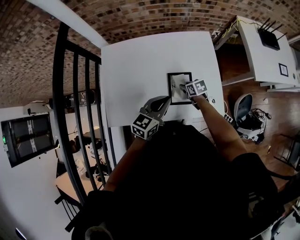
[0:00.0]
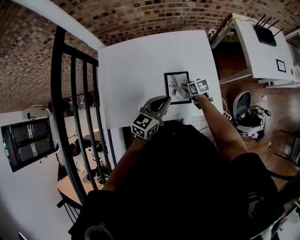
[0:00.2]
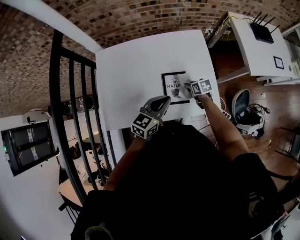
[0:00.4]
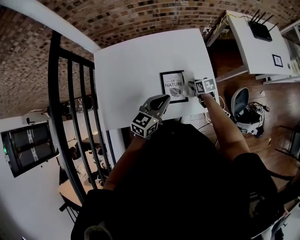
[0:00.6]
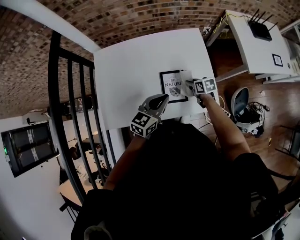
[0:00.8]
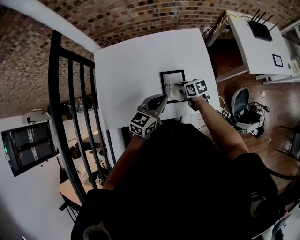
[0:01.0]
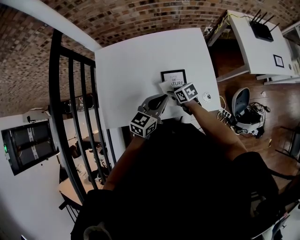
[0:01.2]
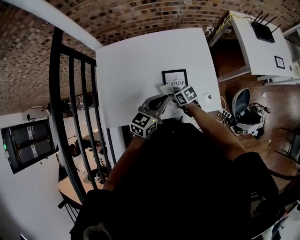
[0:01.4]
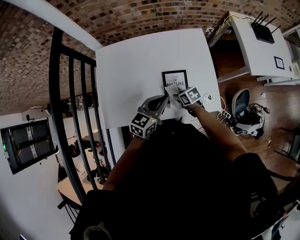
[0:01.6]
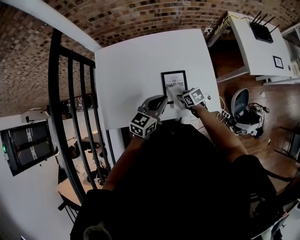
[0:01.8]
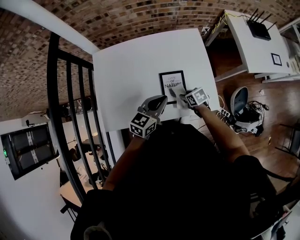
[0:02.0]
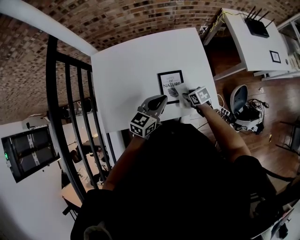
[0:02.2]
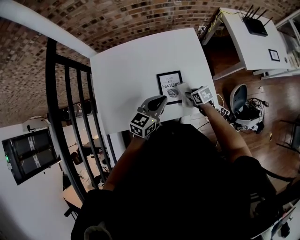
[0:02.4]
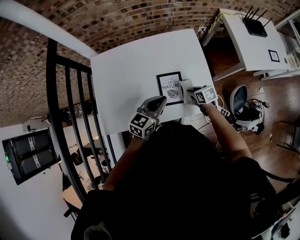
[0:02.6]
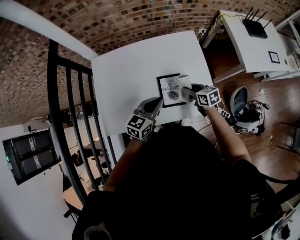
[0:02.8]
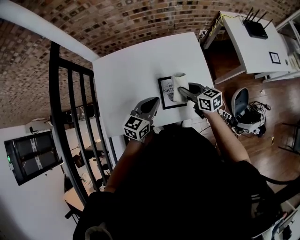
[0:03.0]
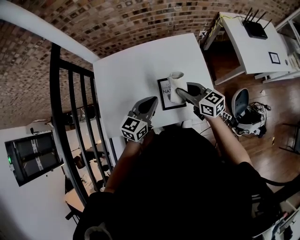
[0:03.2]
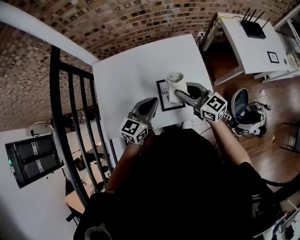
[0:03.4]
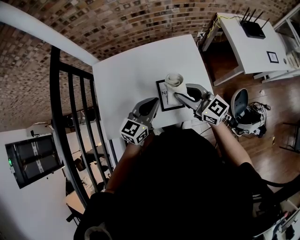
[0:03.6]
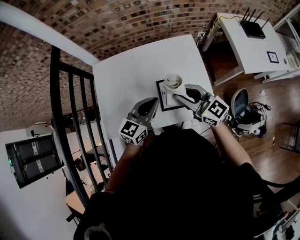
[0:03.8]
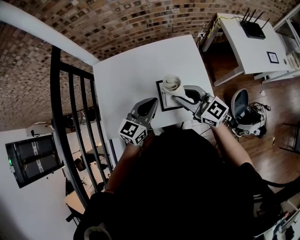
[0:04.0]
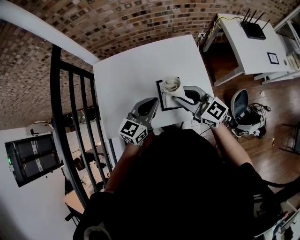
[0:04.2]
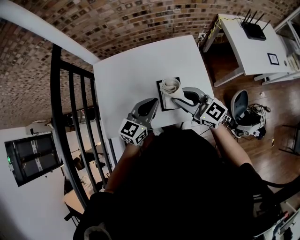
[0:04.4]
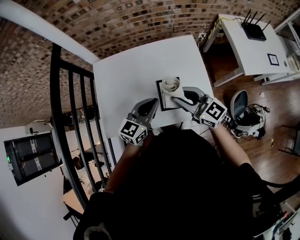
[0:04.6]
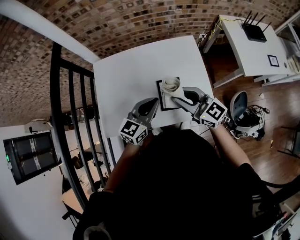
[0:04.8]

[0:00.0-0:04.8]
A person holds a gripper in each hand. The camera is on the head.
0.0 to 1.6 s: The right gripper moves backward, some 5 cm, and travels to the right and back again, approximately 10 cm each way.
1.6 to 3.2 s: The right gripper heads upward, covering roughly 25 cm, and points its fingers approximately 40 degrees further upward.
3.2 to 4.8 s: The right gripper moves upward, approximately 10 cm, and changes its angle by roughly 20 degrees.

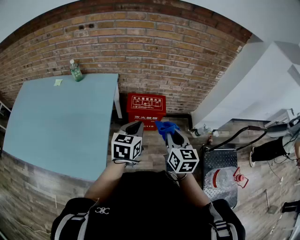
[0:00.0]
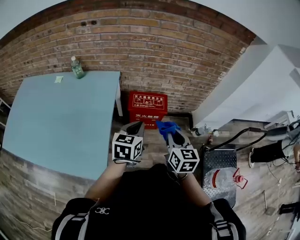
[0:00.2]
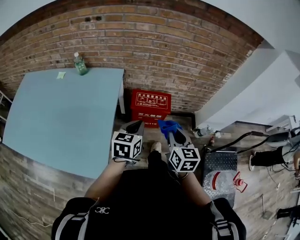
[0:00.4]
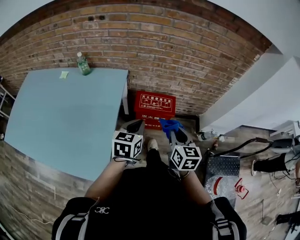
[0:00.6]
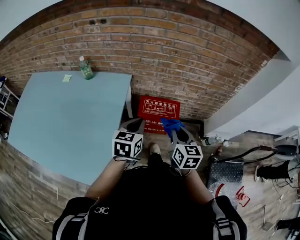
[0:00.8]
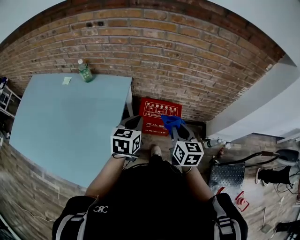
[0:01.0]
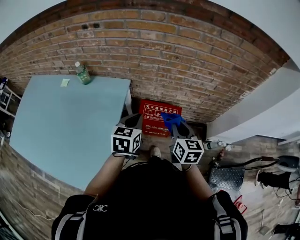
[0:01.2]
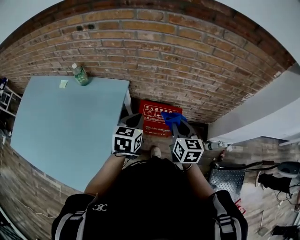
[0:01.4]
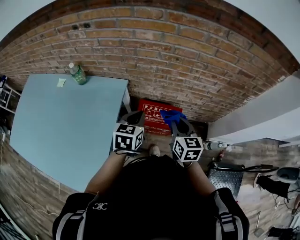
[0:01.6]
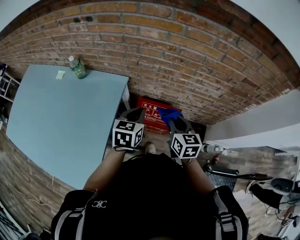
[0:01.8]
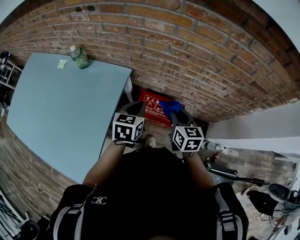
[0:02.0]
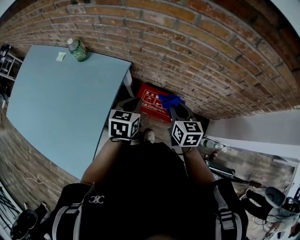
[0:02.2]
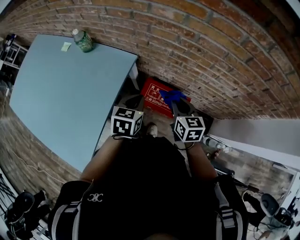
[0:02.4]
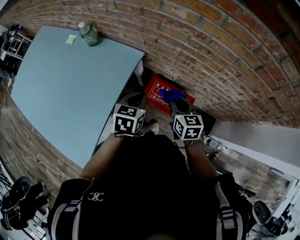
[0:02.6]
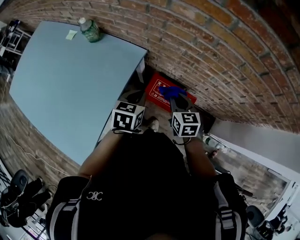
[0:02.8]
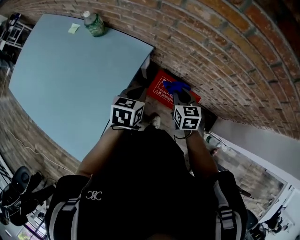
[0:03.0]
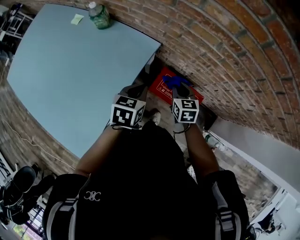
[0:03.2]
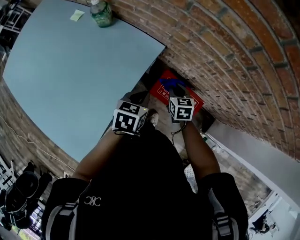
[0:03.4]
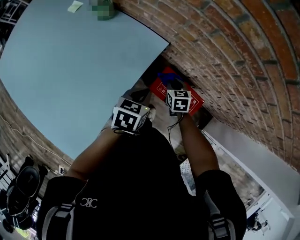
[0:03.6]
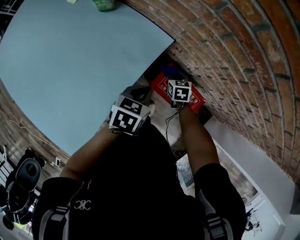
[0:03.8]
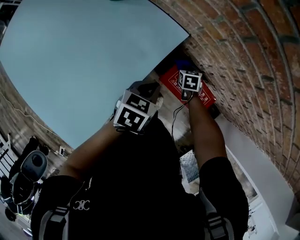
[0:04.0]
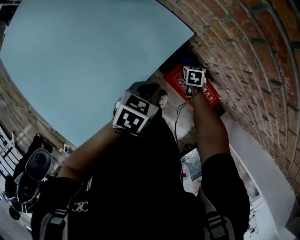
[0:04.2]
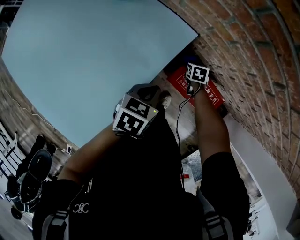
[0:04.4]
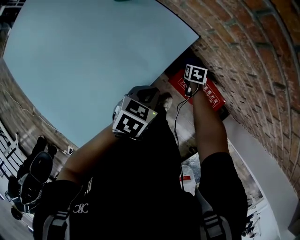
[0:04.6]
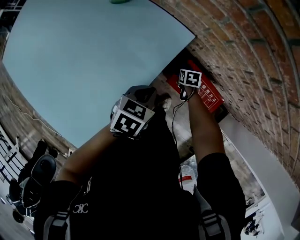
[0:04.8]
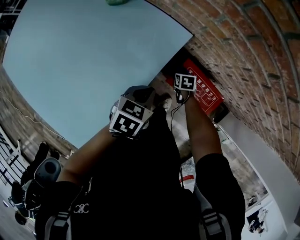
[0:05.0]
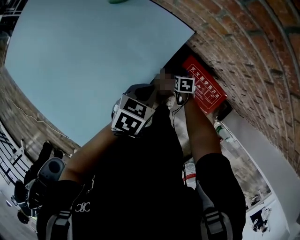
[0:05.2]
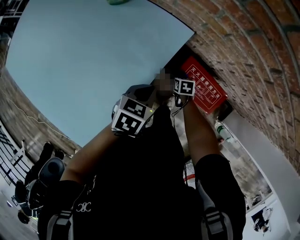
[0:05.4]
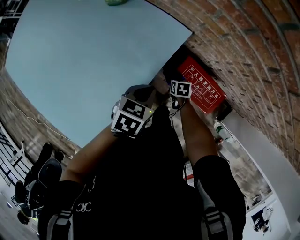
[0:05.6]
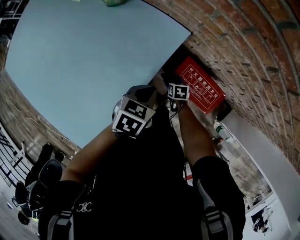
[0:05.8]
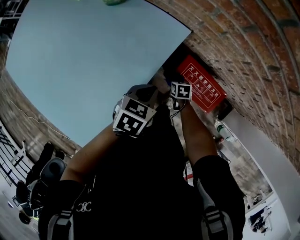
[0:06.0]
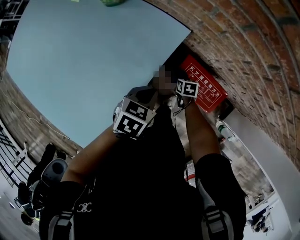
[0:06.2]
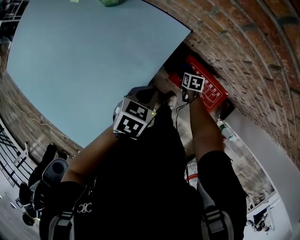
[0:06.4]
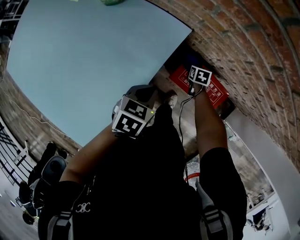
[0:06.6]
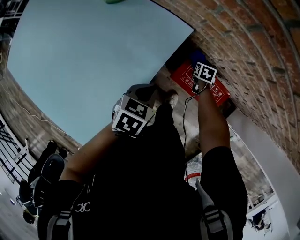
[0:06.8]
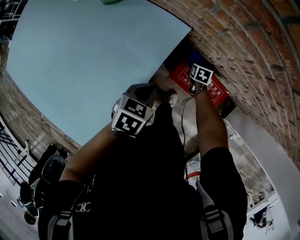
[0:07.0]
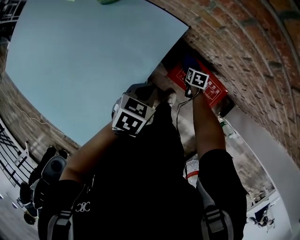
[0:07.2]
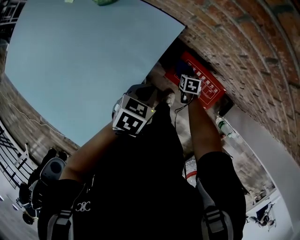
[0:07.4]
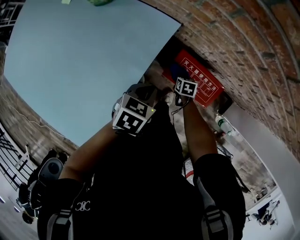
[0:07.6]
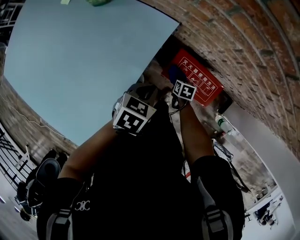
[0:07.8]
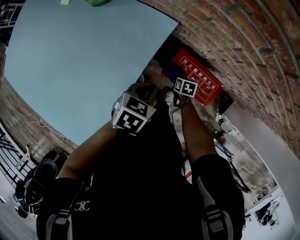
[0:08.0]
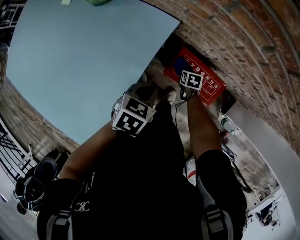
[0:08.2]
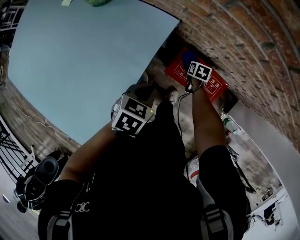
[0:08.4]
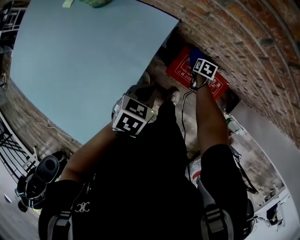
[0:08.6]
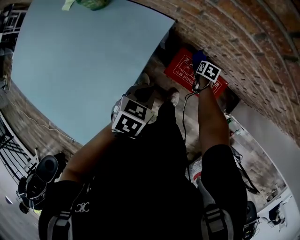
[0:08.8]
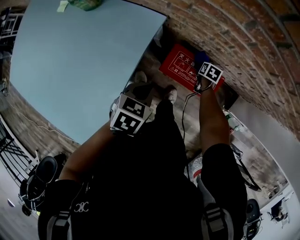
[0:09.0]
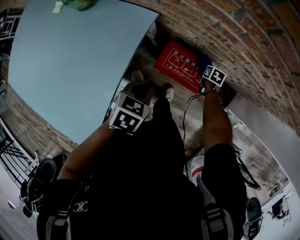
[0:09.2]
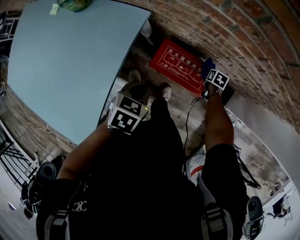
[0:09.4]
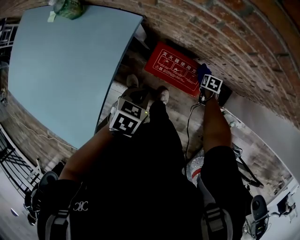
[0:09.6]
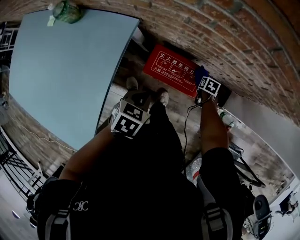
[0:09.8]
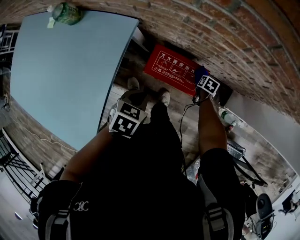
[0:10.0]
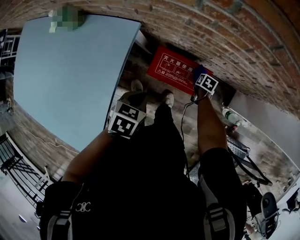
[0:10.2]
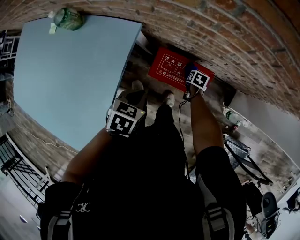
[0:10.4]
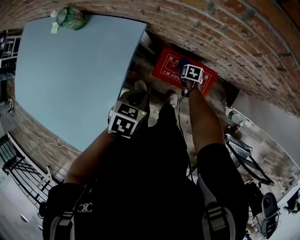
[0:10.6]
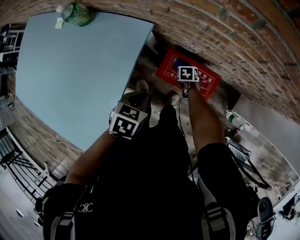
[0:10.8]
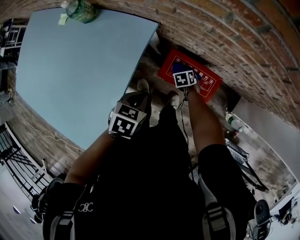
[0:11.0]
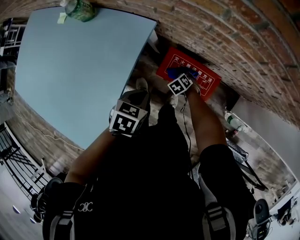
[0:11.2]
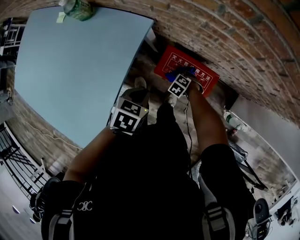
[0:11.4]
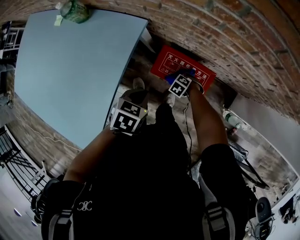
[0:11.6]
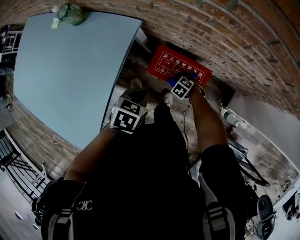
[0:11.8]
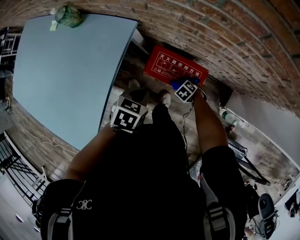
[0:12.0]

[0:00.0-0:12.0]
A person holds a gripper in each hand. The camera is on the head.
0.0 to 1.6 s: The grippers both shift forward by approximately 30 cm.
1.6 to 3.0 s: The left gripper goes approximately 15 cm forward, downward and to the left, and turns by approximately 20 degrees. The right gripper shifts some 20 cm forward, downward and to the left, and changes its angle by approximately 20 degrees.
3.0 to 4.4 s: The left gripper is displaced downward and to the left by some 15 cm. The right gripper travels downward and forward by approximately 30 cm, and points its fingers roughly 30 degrees further downward.
4.4 to 6.0 s: The right gripper moves backward, roughly 15 cm.
6.0 to 7.6 s: The right gripper heads to the right, covering some 5 cm, and reaches about 15 cm forward, then returns.
7.6 to 9.0 s: The right gripper shifts approximately 15 cm to the right and forward.
9.0 to 10.4 s: The right gripper travels to the right and backward by roughly 10 cm.
10.4 to 12.0 s: The right gripper twists roughly 70 degrees counterclockwise, seen from behind.

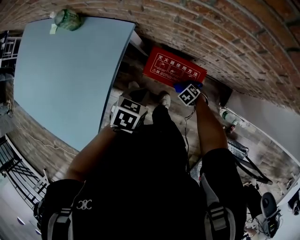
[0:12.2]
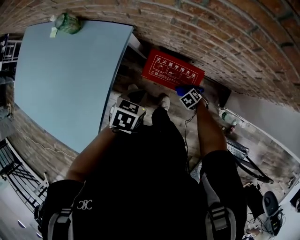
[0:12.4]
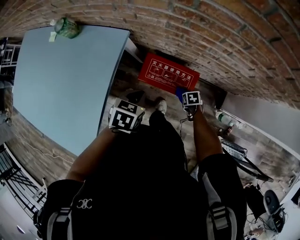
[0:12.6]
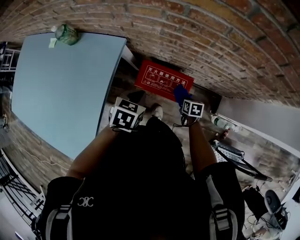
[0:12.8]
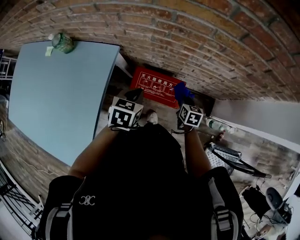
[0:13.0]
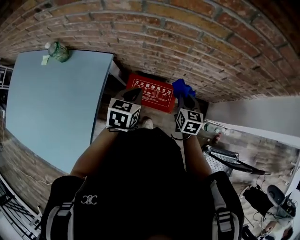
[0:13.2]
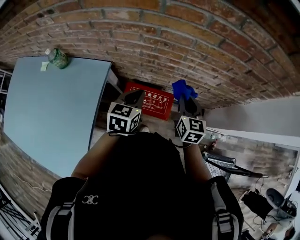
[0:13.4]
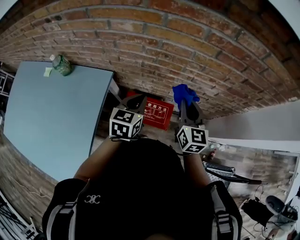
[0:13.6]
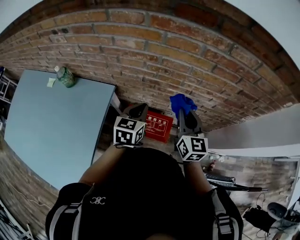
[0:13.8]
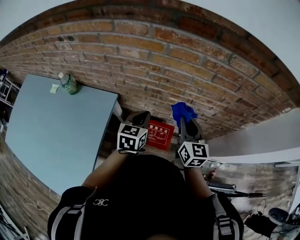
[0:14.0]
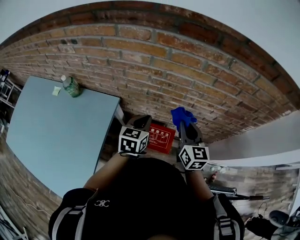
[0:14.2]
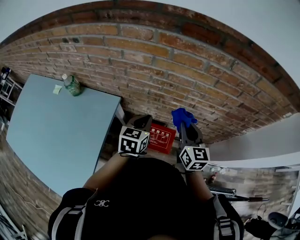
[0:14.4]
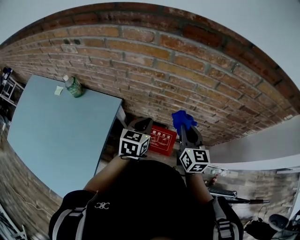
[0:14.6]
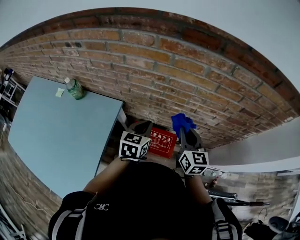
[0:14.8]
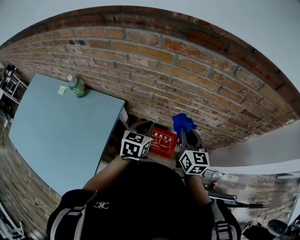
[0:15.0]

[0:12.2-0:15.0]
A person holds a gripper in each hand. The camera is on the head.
12.2 to 13.6 s: The left gripper heads upward, covering roughly 15 cm, and tips its fingers upward by roughly 30 degrees. The right gripper moves upward, some 50 cm, and tips its fingers upward by some 70 degrees.
13.6 to 15.0 s: The grippers stay close to where they were, moving slightly.

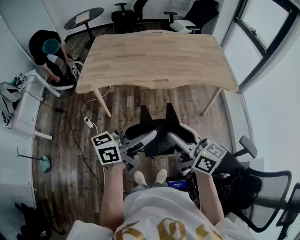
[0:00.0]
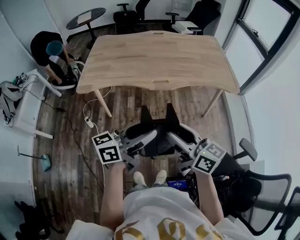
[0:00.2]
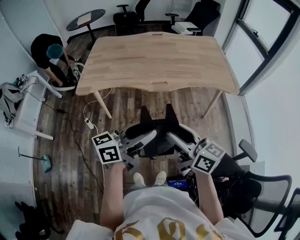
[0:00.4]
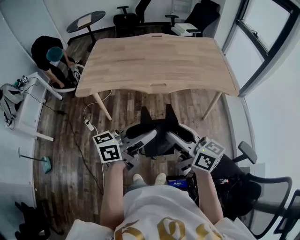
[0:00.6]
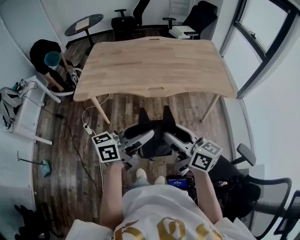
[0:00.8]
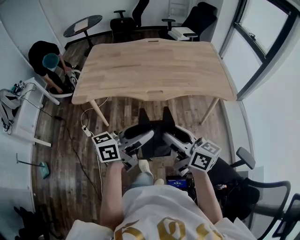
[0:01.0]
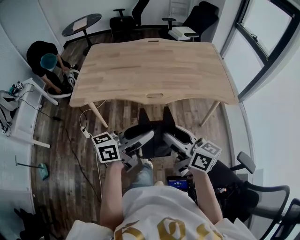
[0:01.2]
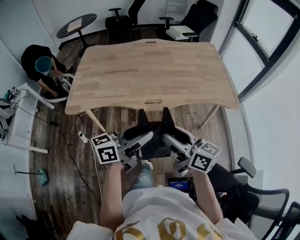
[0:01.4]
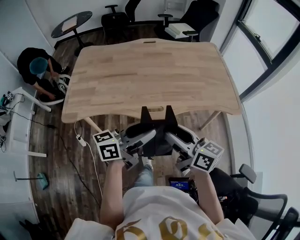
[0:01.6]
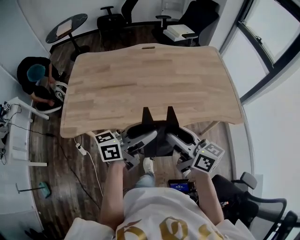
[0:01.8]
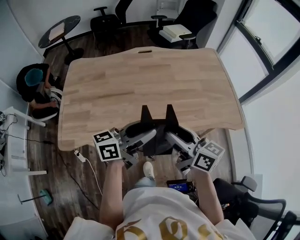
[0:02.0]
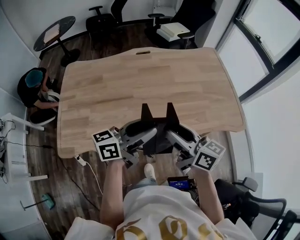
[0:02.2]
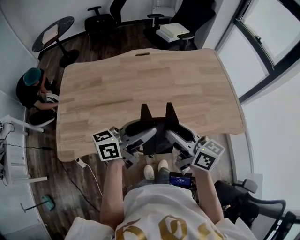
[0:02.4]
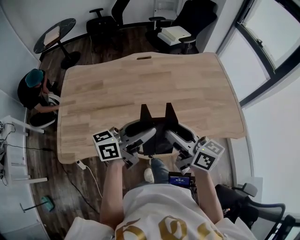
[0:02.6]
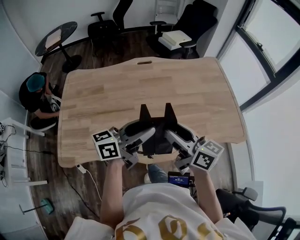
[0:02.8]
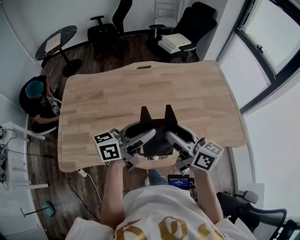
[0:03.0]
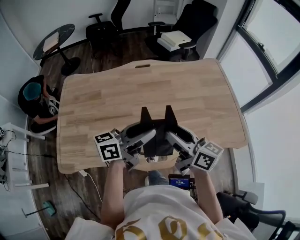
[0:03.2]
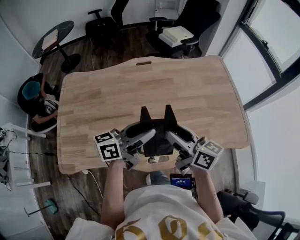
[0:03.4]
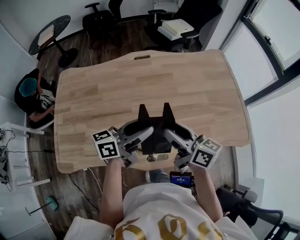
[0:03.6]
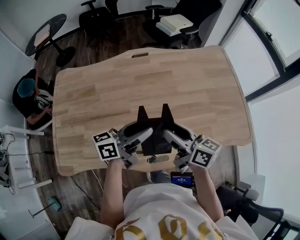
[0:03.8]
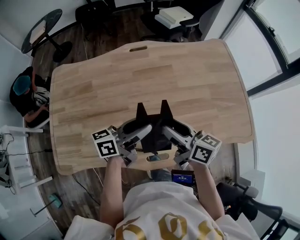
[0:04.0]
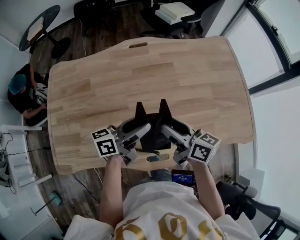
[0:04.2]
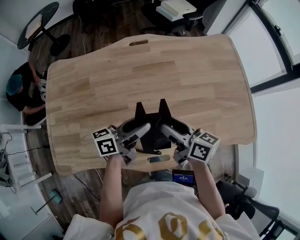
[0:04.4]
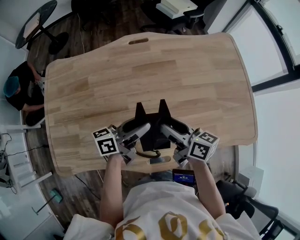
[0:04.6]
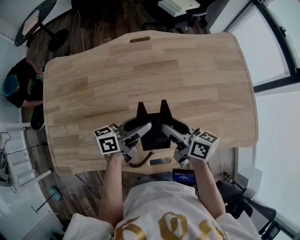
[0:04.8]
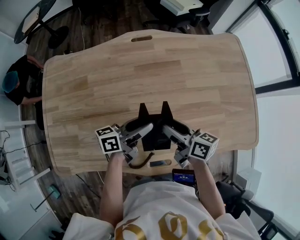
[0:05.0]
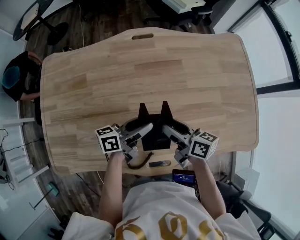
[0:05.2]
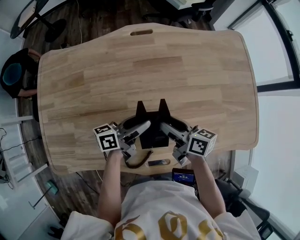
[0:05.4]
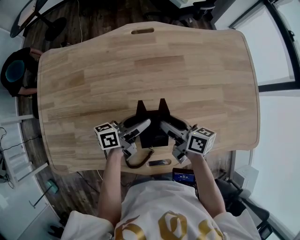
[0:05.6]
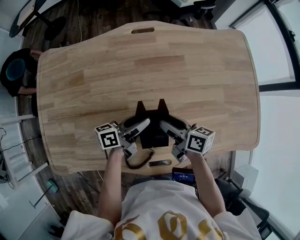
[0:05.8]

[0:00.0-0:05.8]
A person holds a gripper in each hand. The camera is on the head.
0.0 to 1.4 s: The grippers both shift forward by approximately 15 cm.
1.4 to 2.8 s: The grippers both shift forward by some 35 cm.
2.8 to 4.4 s: The two grippers go about 20 cm downward and forward.
4.4 to 5.8 s: Both grippers move downward, some 10 cm.
